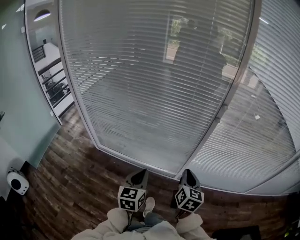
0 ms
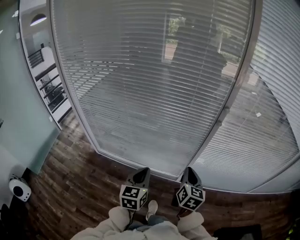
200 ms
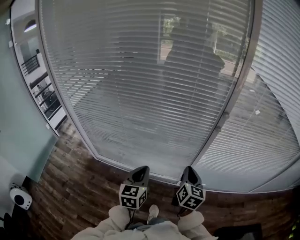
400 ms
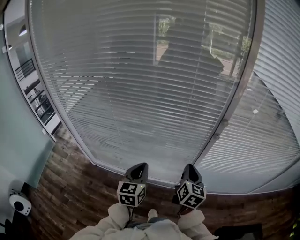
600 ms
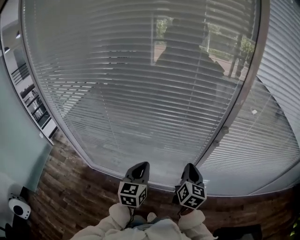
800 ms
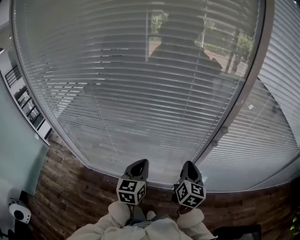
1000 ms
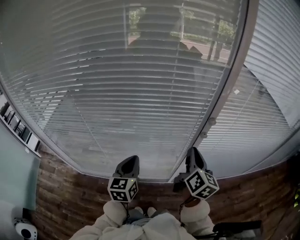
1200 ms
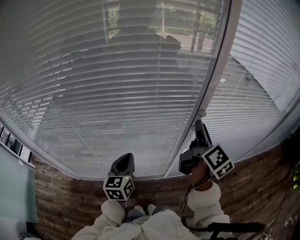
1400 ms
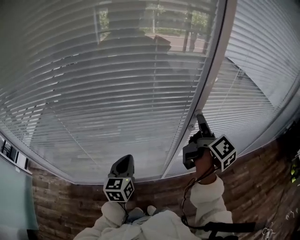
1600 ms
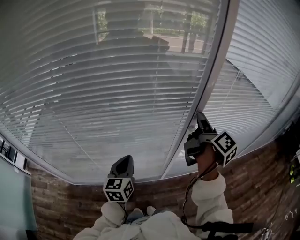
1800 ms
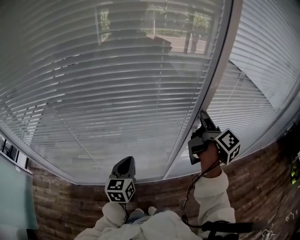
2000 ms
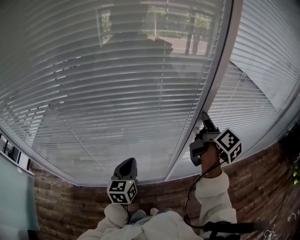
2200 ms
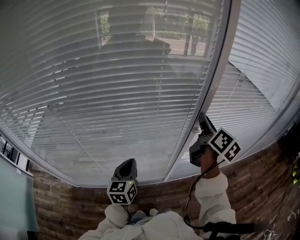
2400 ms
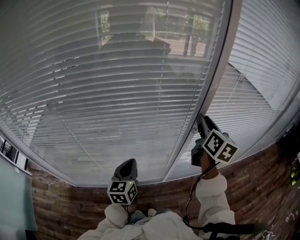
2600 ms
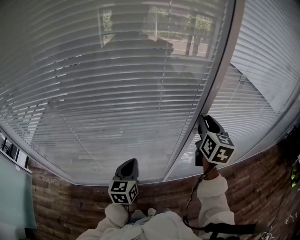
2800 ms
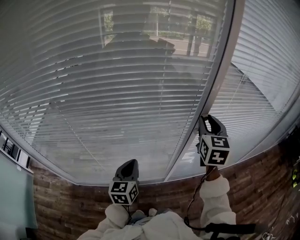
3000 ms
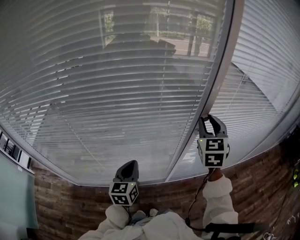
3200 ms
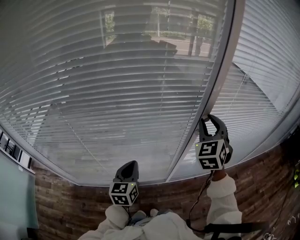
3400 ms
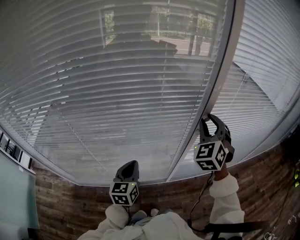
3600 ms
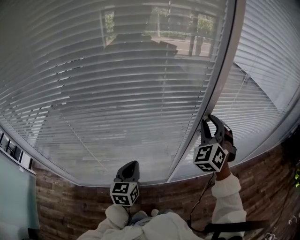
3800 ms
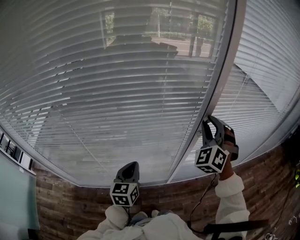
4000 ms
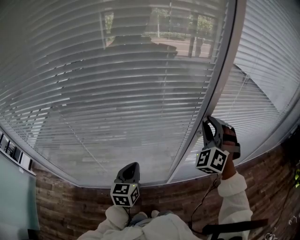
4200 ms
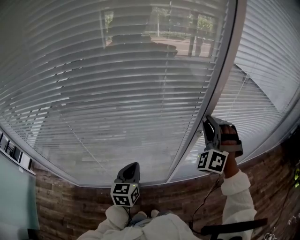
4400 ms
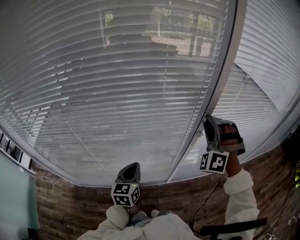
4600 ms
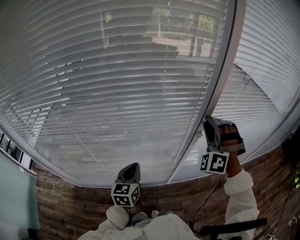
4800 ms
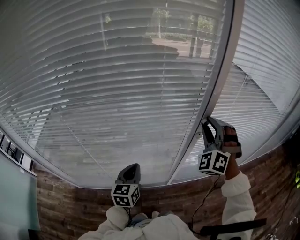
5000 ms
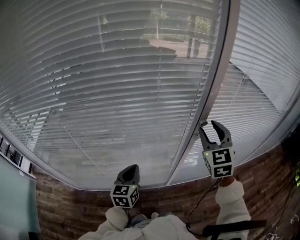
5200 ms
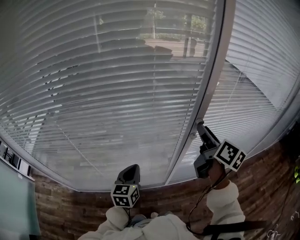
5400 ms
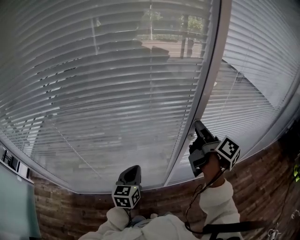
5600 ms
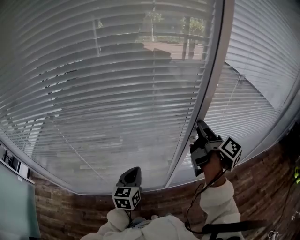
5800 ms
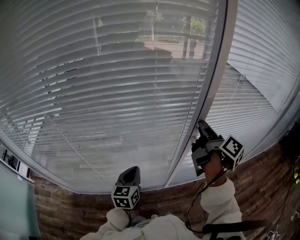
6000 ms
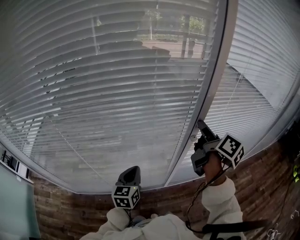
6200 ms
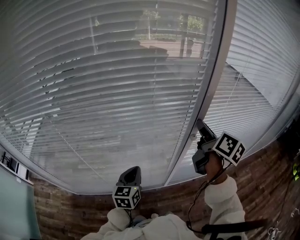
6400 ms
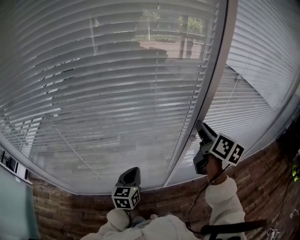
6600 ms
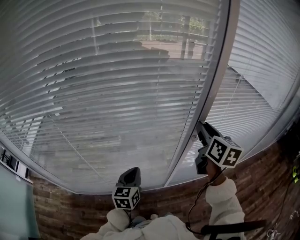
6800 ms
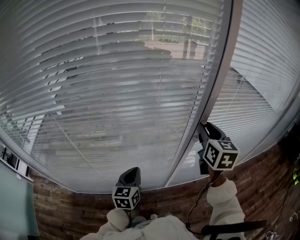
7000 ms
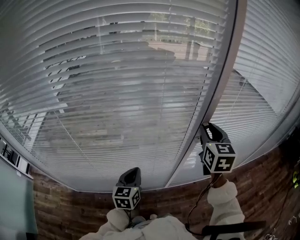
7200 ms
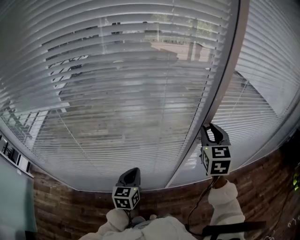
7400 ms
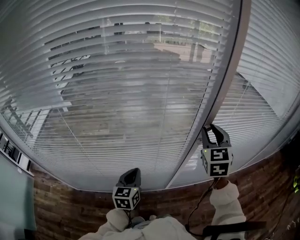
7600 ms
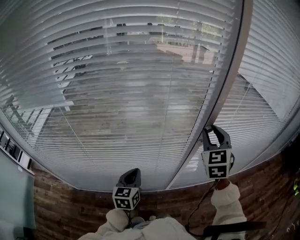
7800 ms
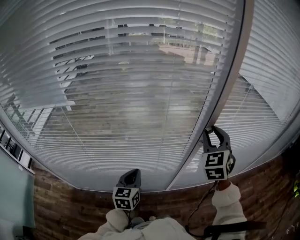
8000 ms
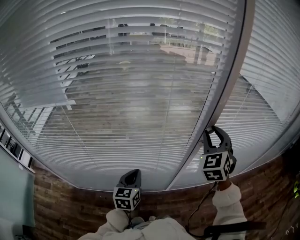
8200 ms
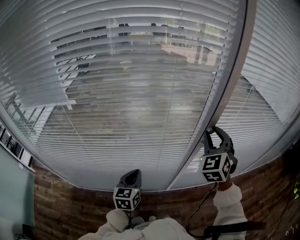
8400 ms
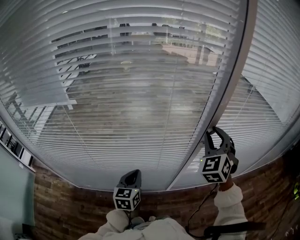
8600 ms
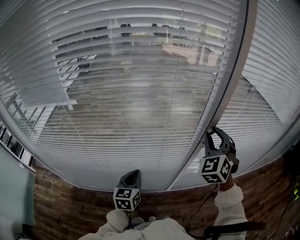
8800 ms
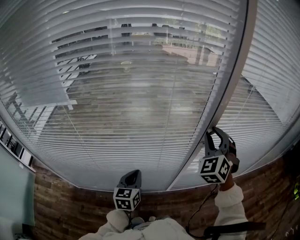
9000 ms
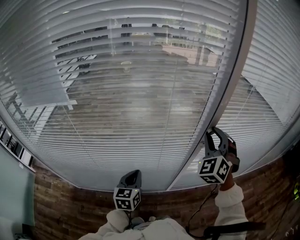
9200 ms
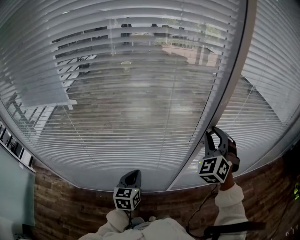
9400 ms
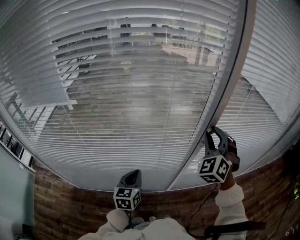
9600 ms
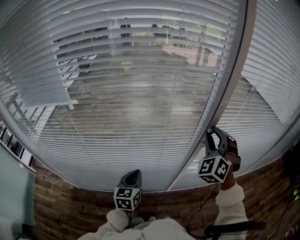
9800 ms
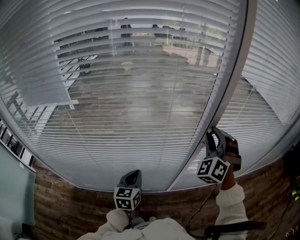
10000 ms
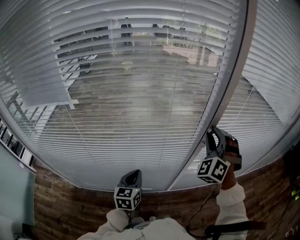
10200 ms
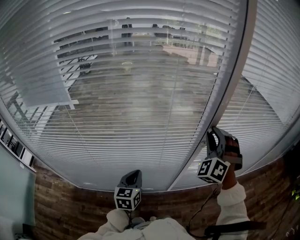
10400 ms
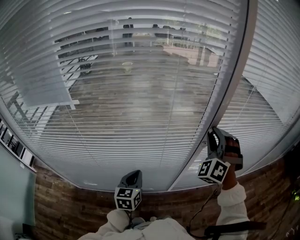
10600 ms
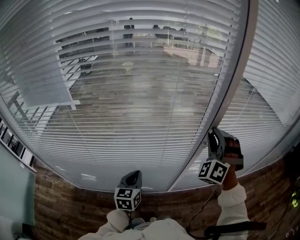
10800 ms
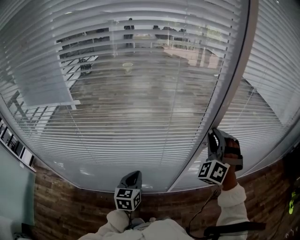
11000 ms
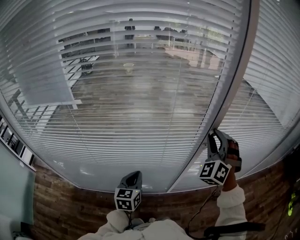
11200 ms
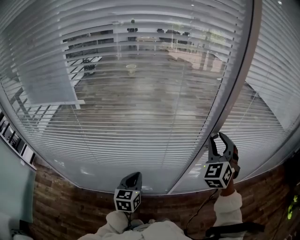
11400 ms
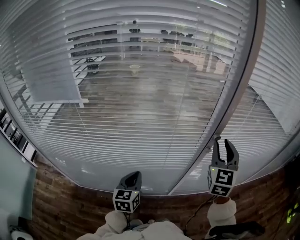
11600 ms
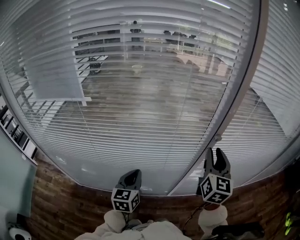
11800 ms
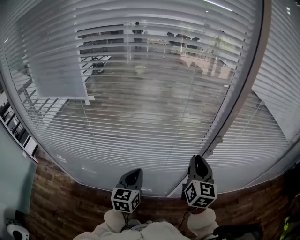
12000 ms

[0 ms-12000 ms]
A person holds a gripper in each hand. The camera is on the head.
0 ms to 1600 ms: The right gripper heads forward and upward, covering about 30 cm, rotates around the line of its fingers by roughly 50 degrees, clockwise from behind, and opens its fingers. Meanwhile the left gripper goes approximately 30 cm forward.
1600 ms to 3000 ms: The right gripper twists roughly 70 degrees counterclockwise, seen from behind.
3000 ms to 4400 ms: The right gripper rolls counterclockwise, seen from behind, by roughly 80 degrees.
4400 ms to 6000 ms: The right gripper twists about 150 degrees clockwise, seen from behind.
6000 ms to 7600 ms: The right gripper rotates around the line of its fingers by about 90 degrees, counterclockwise from behind.
7600 ms to 9000 ms: The right gripper changes its angle by about 30 degrees.
9000 ms to 10400 ms: The right gripper swivels about 20 degrees.
10400 ms to 12000 ms: The right gripper shifts about 10 cm backward, to the left and downward, and twists roughly 80 degrees clockwise, seen from behind, while the left gripper travels upward by approximately 5 cm.

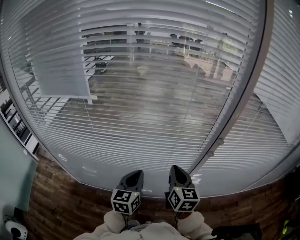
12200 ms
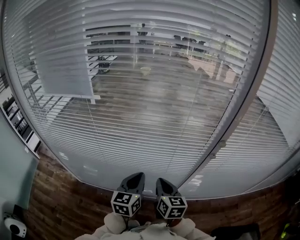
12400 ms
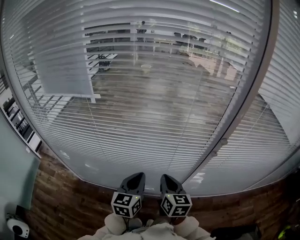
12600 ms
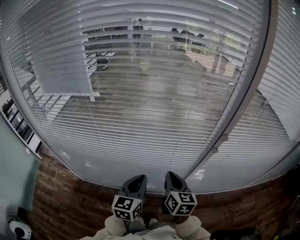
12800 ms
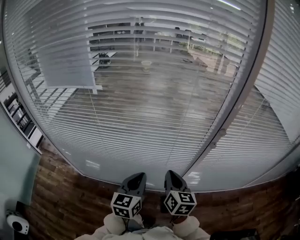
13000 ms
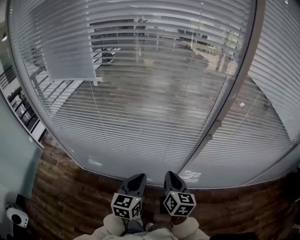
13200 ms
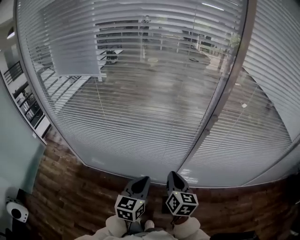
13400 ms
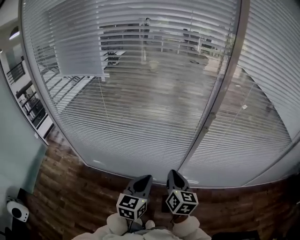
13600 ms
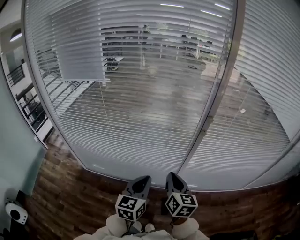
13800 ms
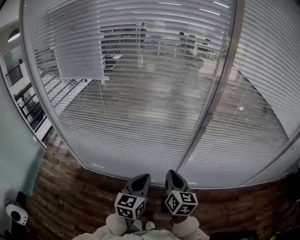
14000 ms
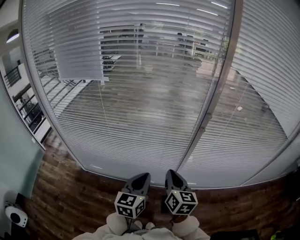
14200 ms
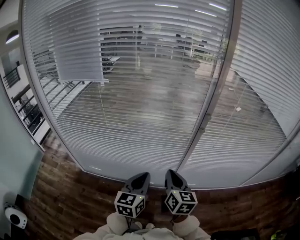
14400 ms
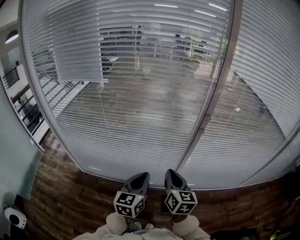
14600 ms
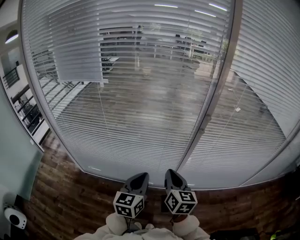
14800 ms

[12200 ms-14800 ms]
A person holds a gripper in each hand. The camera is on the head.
12200 ms to 13400 ms: Both grippers travel together backward, some 15 cm.
13400 ms to 14800 ms: The grippers move only a little.

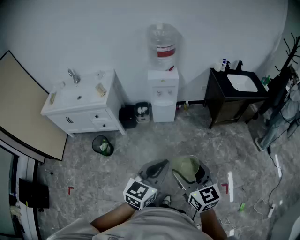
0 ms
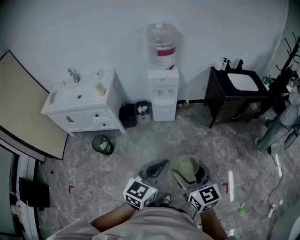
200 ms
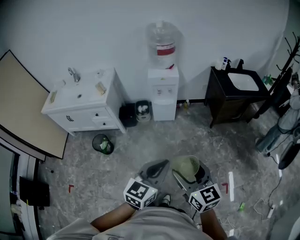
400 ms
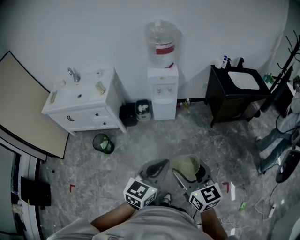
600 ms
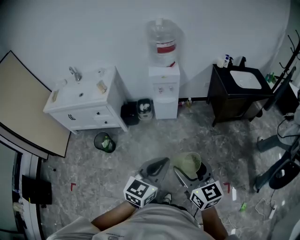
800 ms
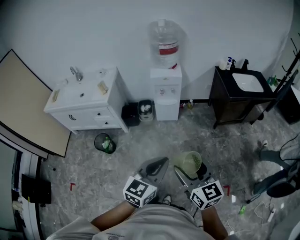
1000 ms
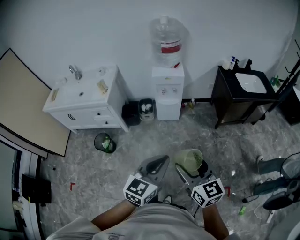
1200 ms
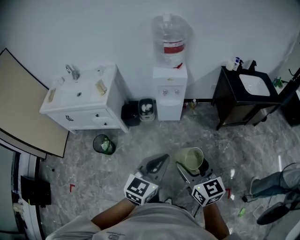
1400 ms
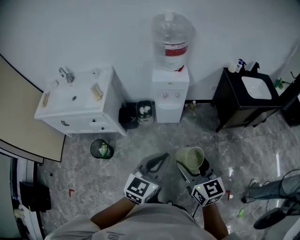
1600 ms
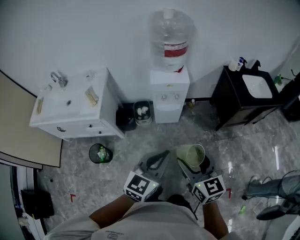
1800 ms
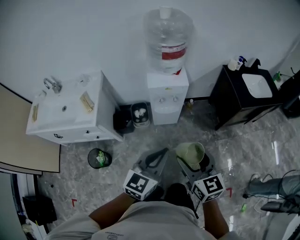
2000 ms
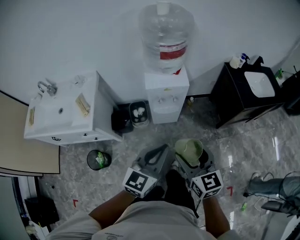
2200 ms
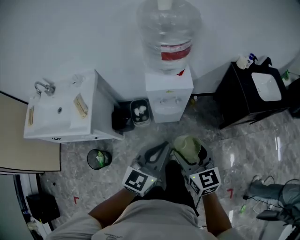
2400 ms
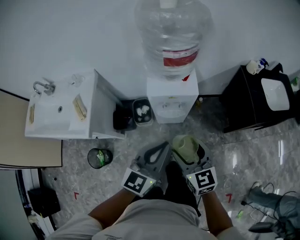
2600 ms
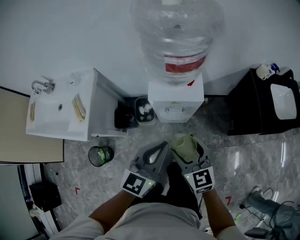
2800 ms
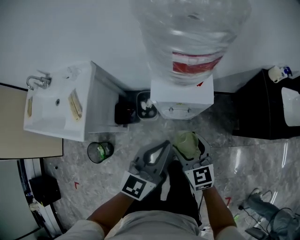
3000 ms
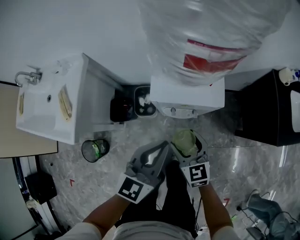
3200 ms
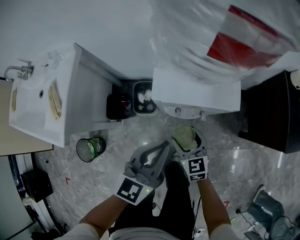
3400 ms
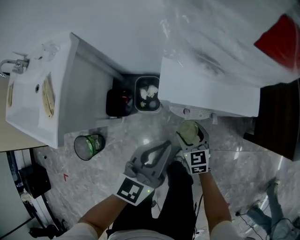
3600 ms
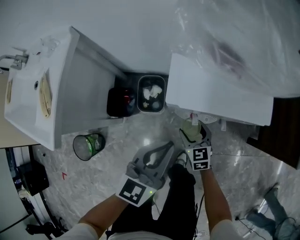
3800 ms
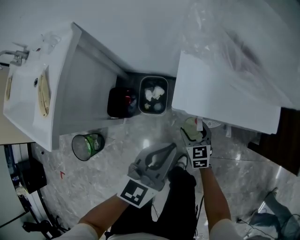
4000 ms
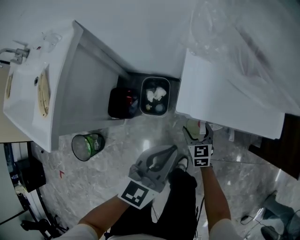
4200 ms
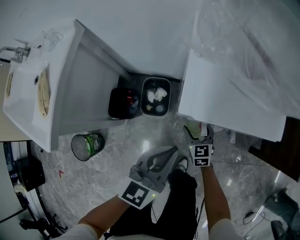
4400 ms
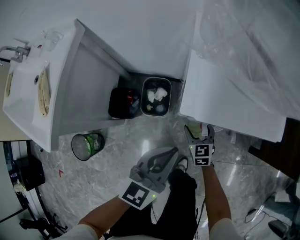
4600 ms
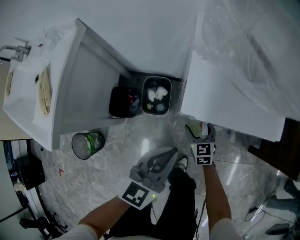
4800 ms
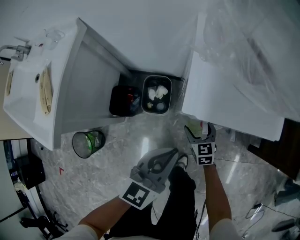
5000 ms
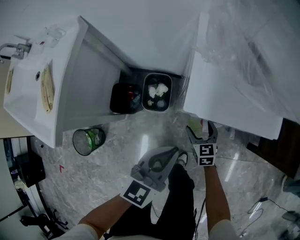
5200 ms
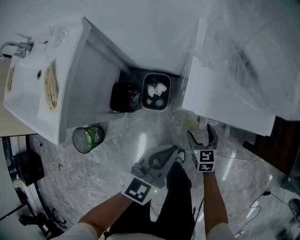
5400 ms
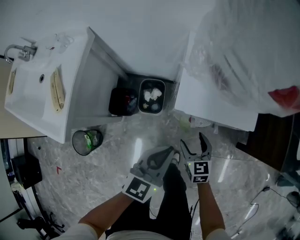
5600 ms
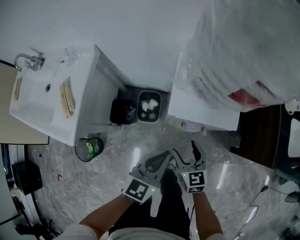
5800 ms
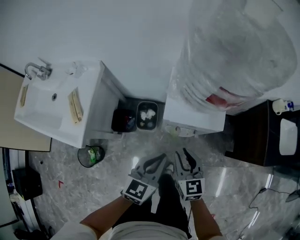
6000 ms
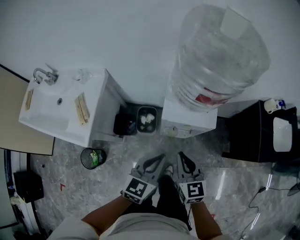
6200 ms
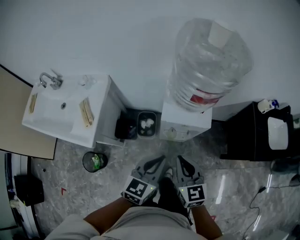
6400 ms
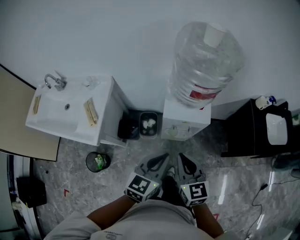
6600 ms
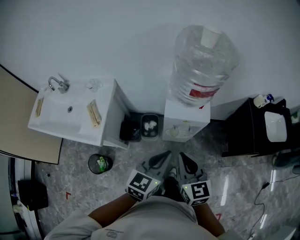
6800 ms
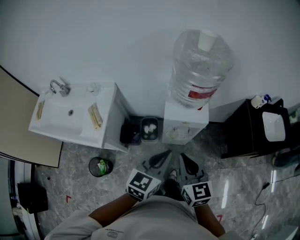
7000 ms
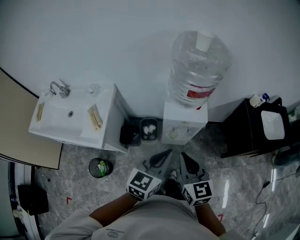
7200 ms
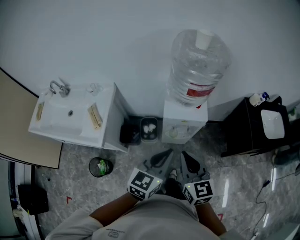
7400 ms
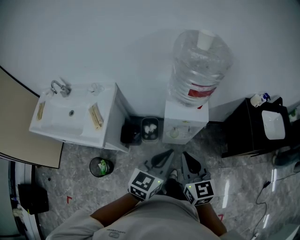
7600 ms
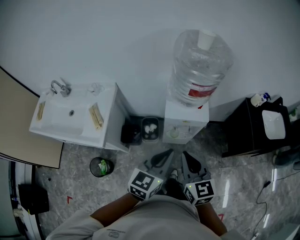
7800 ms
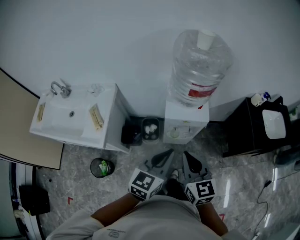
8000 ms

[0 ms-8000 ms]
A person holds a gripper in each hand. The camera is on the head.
0 ms to 1600 ms: Both grippers move forward, approximately 25 cm.
1600 ms to 3200 ms: The two grippers travel together, forward, roughly 50 cm. The right gripper heads downward, covering roughly 30 cm.
3200 ms to 4800 ms: Both grippers move downward, roughly 25 cm.
4800 ms to 6400 ms: The right gripper moves upward, some 50 cm, and closes, while the left gripper heads upward, covering roughly 30 cm.
6400 ms to 8000 ms: The right gripper shifts roughly 10 cm upward and backward. The left gripper travels upward by some 10 cm.

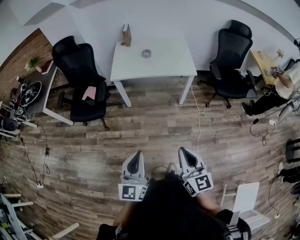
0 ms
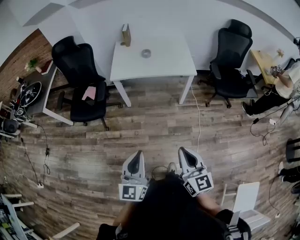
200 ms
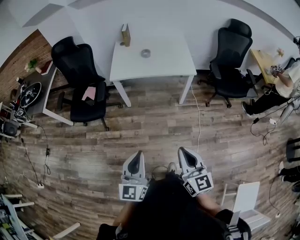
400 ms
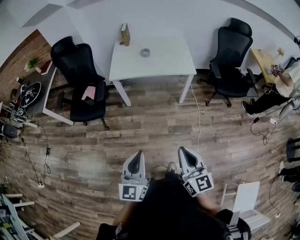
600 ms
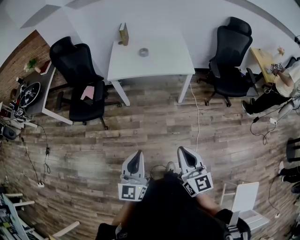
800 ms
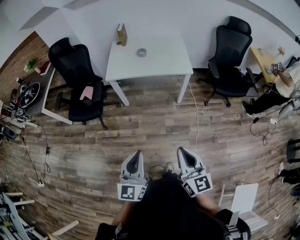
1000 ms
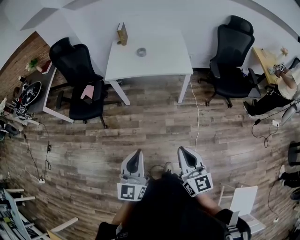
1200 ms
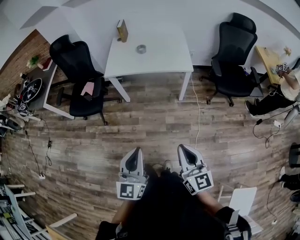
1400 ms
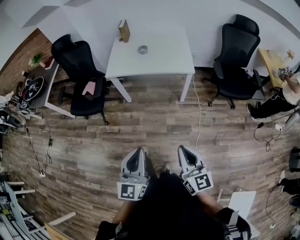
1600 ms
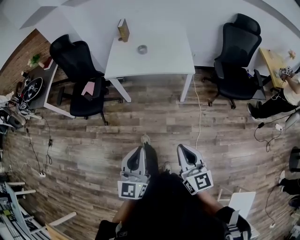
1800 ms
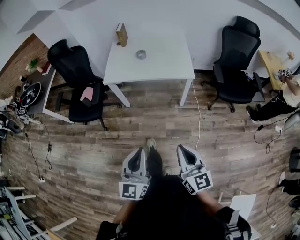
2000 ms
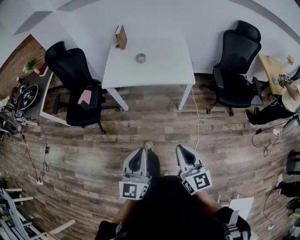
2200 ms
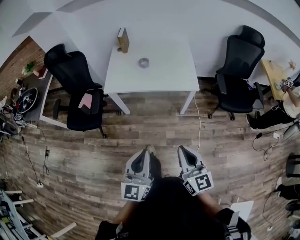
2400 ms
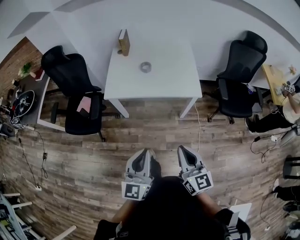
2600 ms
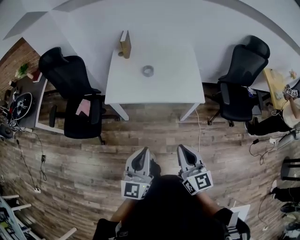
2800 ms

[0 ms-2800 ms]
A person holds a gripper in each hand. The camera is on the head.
0 ms to 1400 ms: Both grippers travel together to the right, approximately 10 cm.
1400 ms to 2800 ms: The two grippers go some 30 cm forward.
